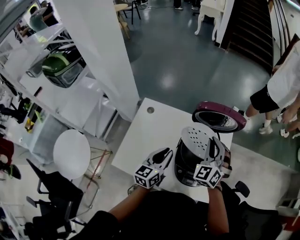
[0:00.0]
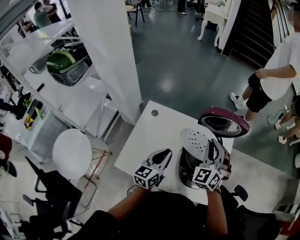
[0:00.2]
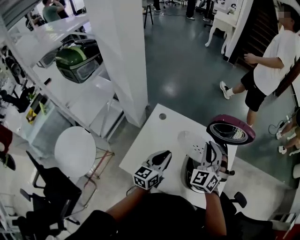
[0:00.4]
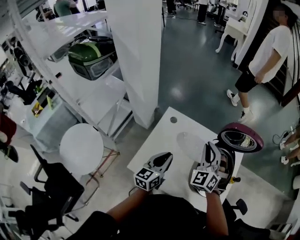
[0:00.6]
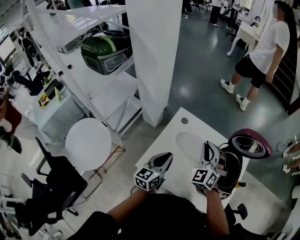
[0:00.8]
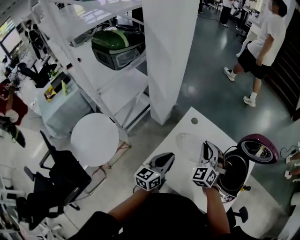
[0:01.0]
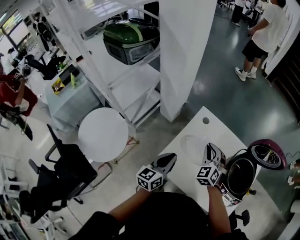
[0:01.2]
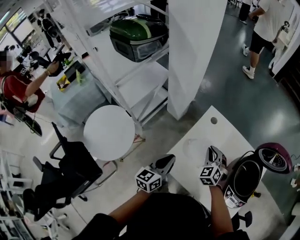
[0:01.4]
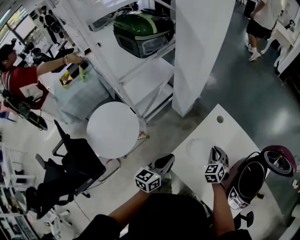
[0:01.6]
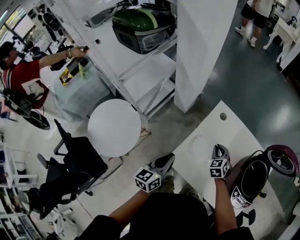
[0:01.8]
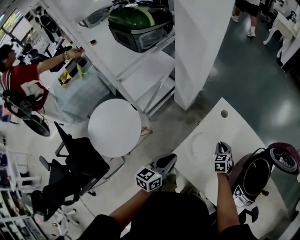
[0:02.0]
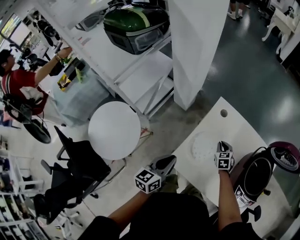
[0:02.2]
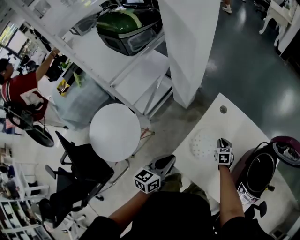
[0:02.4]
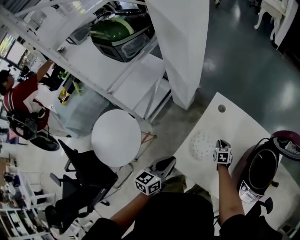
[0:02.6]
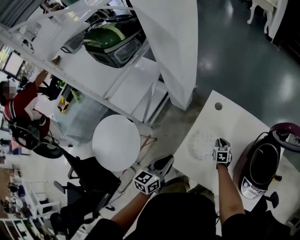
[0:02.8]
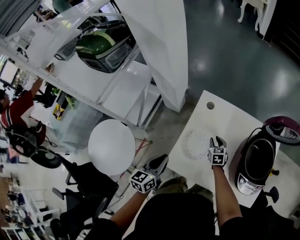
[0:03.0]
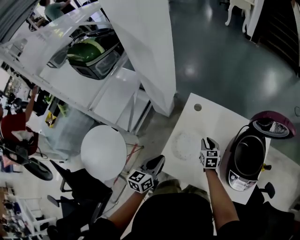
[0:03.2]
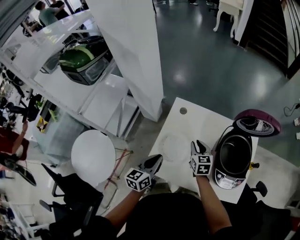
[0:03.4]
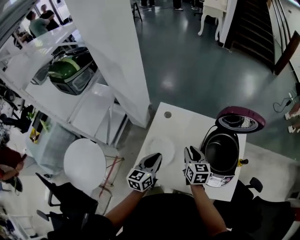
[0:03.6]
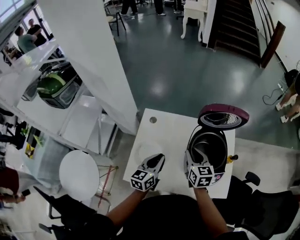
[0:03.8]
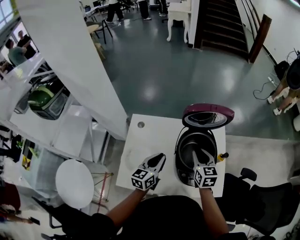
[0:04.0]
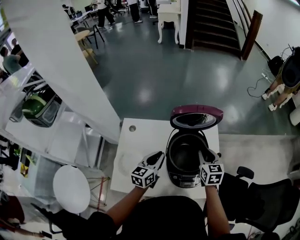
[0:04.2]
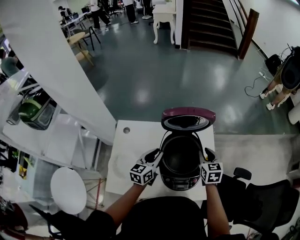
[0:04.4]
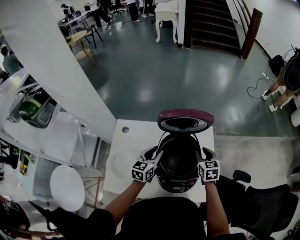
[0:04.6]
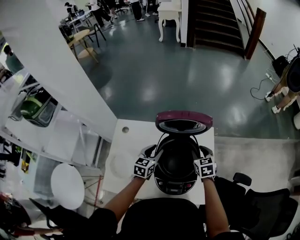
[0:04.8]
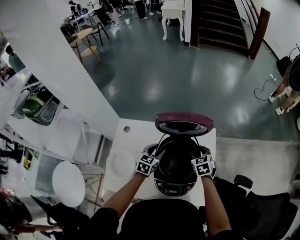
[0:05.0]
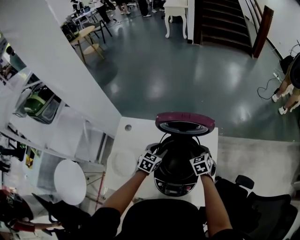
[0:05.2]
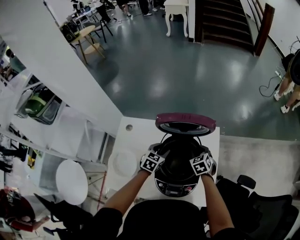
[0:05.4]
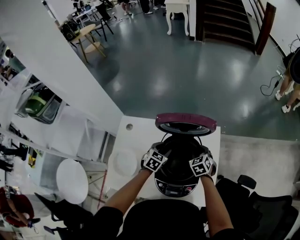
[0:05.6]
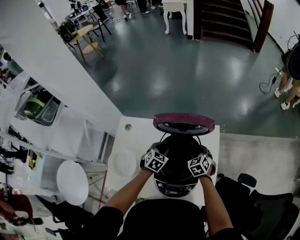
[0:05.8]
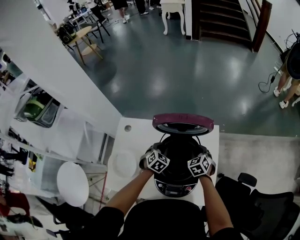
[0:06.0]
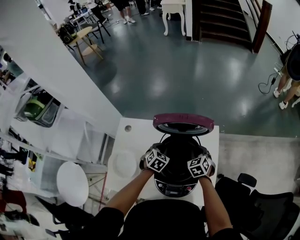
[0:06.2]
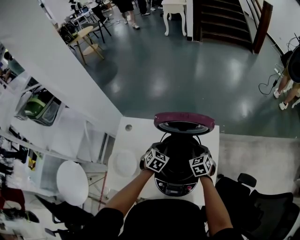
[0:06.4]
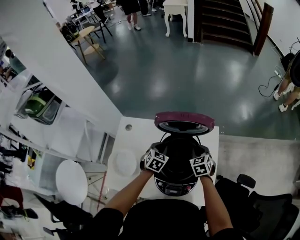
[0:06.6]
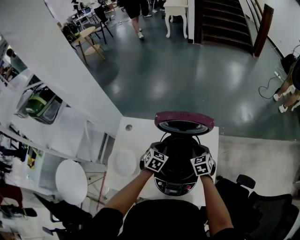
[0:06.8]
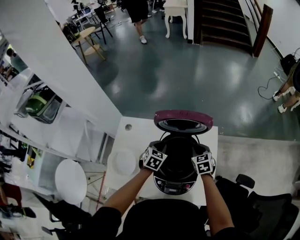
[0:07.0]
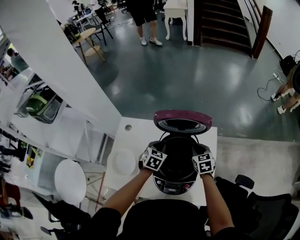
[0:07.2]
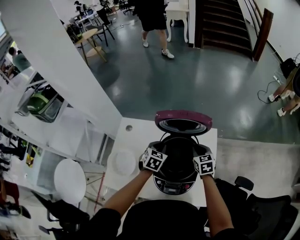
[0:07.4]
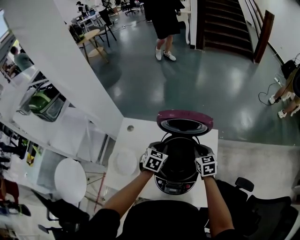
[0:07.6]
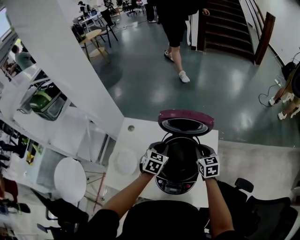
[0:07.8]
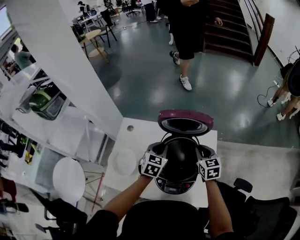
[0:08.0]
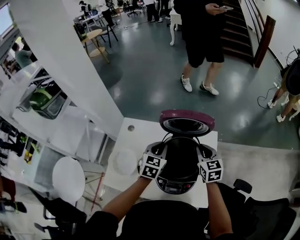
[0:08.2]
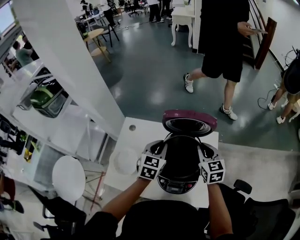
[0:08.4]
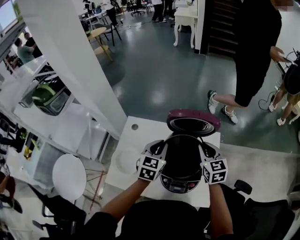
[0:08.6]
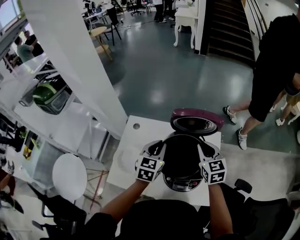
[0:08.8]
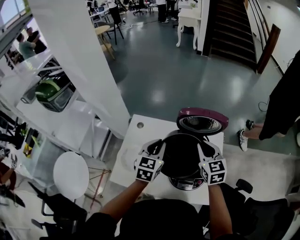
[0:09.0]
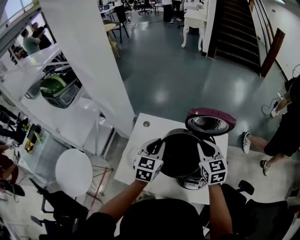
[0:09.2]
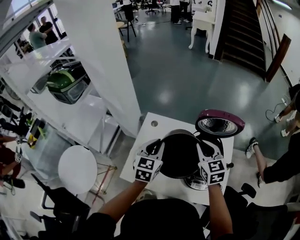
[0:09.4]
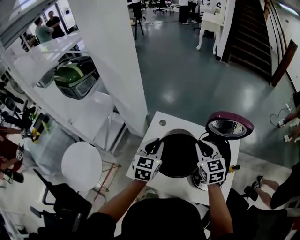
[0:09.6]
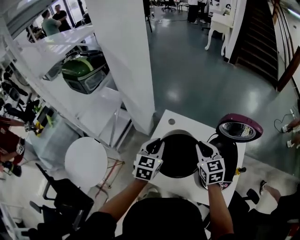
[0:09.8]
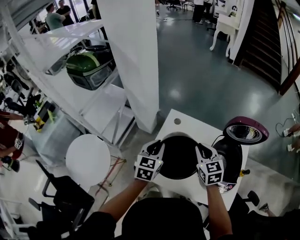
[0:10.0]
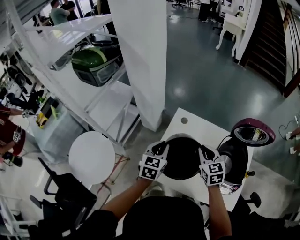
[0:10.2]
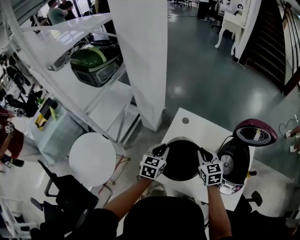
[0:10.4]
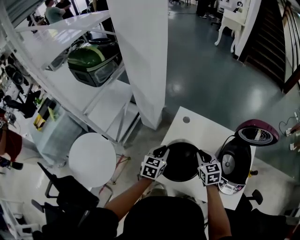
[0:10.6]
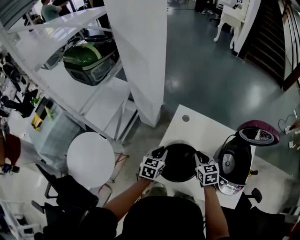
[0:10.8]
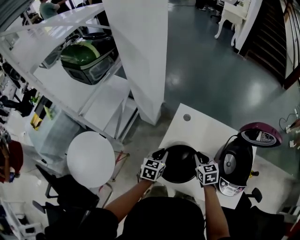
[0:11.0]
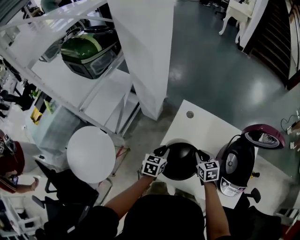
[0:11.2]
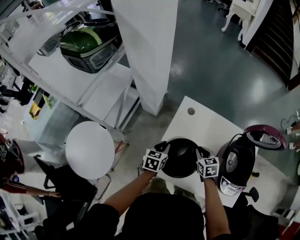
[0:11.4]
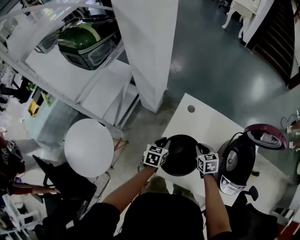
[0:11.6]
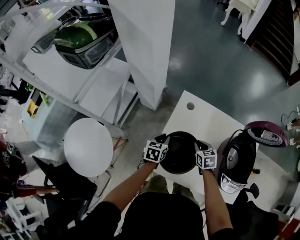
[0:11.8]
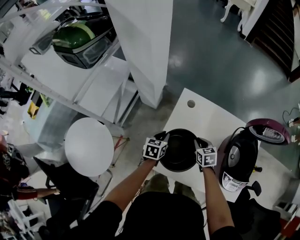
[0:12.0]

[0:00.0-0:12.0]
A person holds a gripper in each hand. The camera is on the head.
0:00.0 to 0:01.6: The left gripper travels to the left by some 35 cm, and turns by roughly 20 degrees; the right gripper moves to the left and downward, some 40 cm, and turns by approximately 30 degrees.
0:01.6 to 0:03.0: The right gripper shifts approximately 15 cm downward and to the right, and rotates around the line of its fingers by approximately 40 degrees, clockwise from behind.
0:03.0 to 0:04.4: Both grippers are carried to the right, approximately 40 cm. The left gripper swivels about 30 degrees. Meanwhile the right gripper is displaced upward by approximately 20 cm, and swivels approximately 30 degrees.
0:04.4 to 0:06.0: The two grippers go approximately 15 cm downward and forward. The left gripper tips its fingers downward by some 30 degrees, and opens and closes again. The right gripper changes its angle by approximately 30 degrees.
0:06.0 to 0:07.6: Both grippers move upward, roughly 10 cm. The right gripper changes its angle by roughly 20 degrees.
0:07.6 to 0:09.0: The left gripper is displaced upward, to the left and backward by roughly 20 cm, and turns by about 20 degrees, while the right gripper goes about 20 cm upward and to the left.
0:09.0 to 0:10.4: The grippers both shift to the left by approximately 30 cm.
0:10.4 to 0:12.0: Both grippers travel together downward, some 15 cm. The right gripper rotates some 20 degrees.

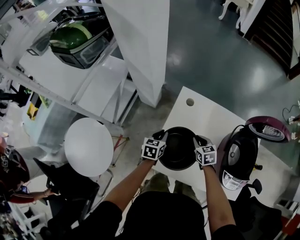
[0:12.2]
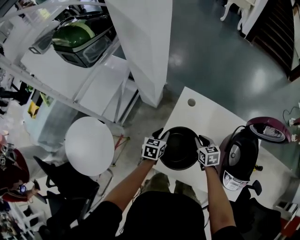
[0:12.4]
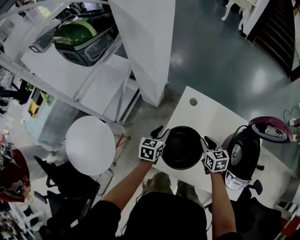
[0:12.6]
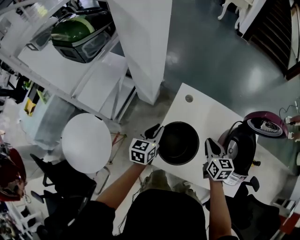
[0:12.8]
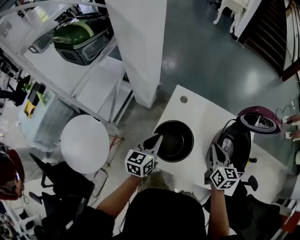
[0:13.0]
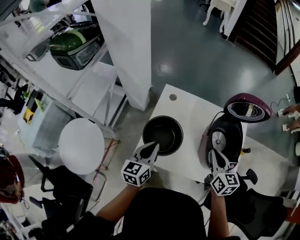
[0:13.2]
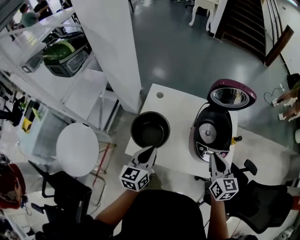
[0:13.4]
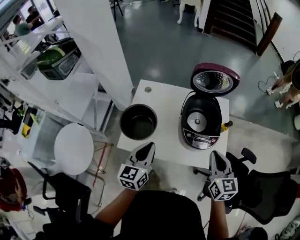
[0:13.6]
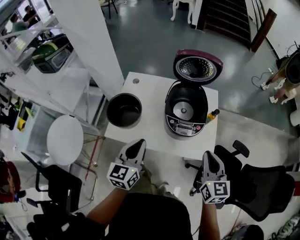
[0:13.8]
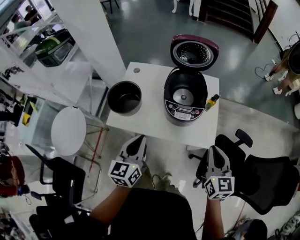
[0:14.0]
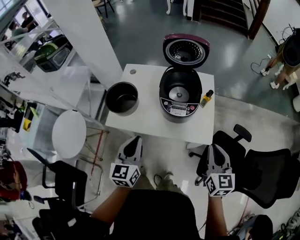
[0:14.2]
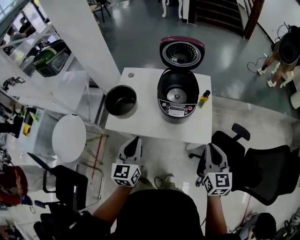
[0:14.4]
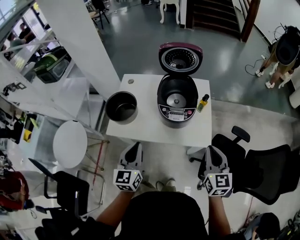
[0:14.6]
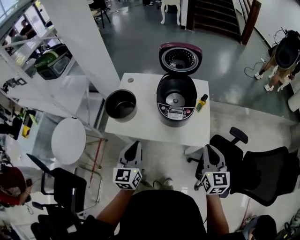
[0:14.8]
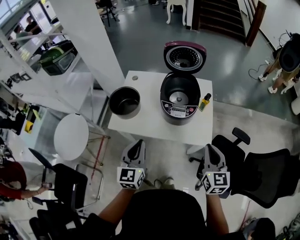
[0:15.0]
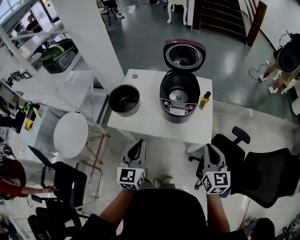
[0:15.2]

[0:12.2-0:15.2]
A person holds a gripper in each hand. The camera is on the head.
0:12.2 to 0:13.8: Both grippers travel together backward, to the right and upward, approximately 50 cm. The right gripper angles its fingers upward, by roughly 30 degrees, while the left gripper turns by roughly 30 degrees.
0:13.8 to 0:15.2: The left gripper goes roughly 10 cm backward. The right gripper is displaced backward and to the right by about 10 cm.

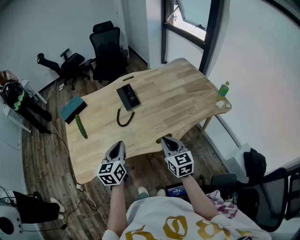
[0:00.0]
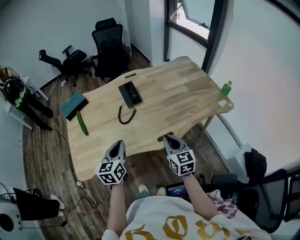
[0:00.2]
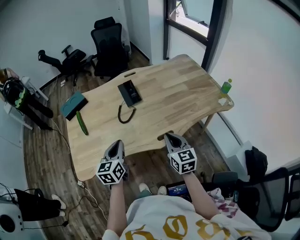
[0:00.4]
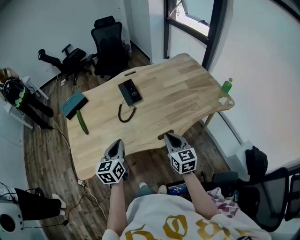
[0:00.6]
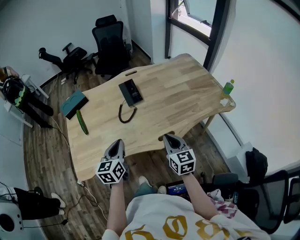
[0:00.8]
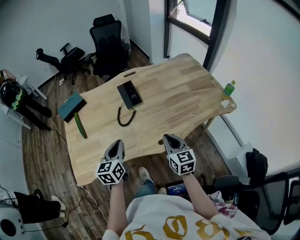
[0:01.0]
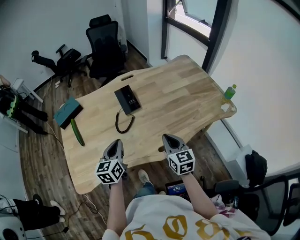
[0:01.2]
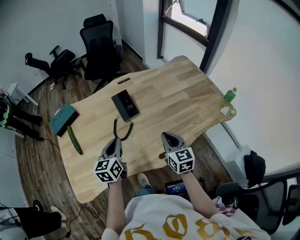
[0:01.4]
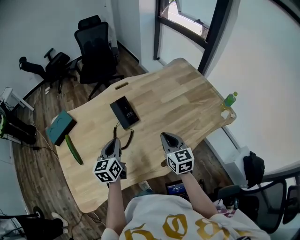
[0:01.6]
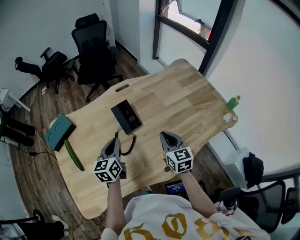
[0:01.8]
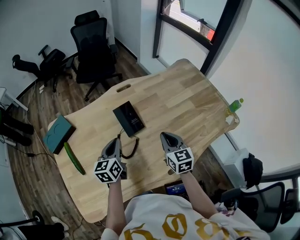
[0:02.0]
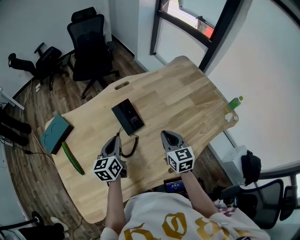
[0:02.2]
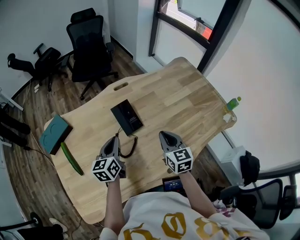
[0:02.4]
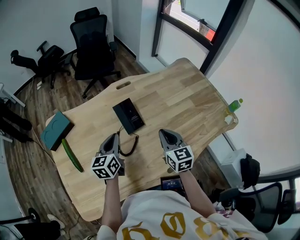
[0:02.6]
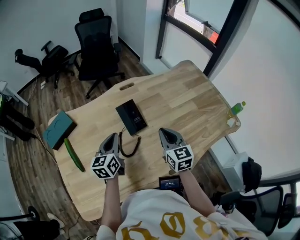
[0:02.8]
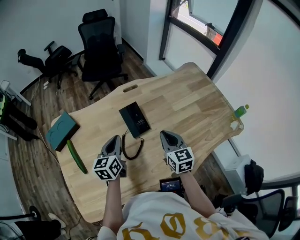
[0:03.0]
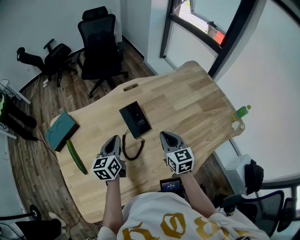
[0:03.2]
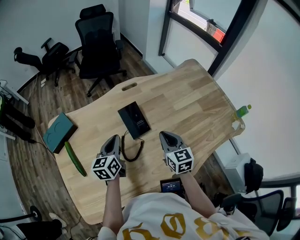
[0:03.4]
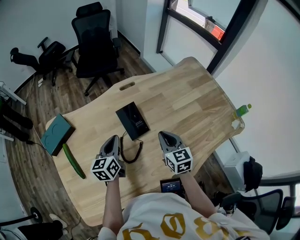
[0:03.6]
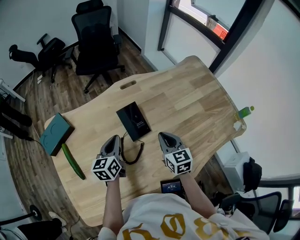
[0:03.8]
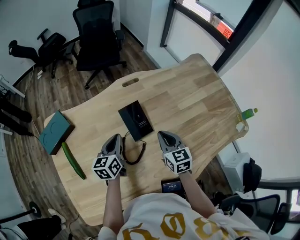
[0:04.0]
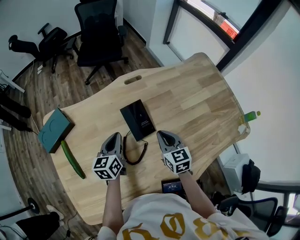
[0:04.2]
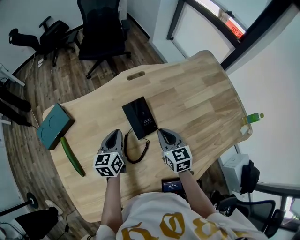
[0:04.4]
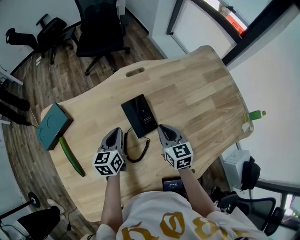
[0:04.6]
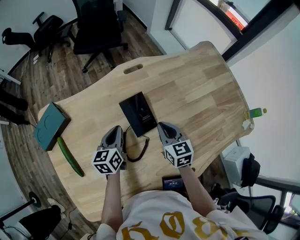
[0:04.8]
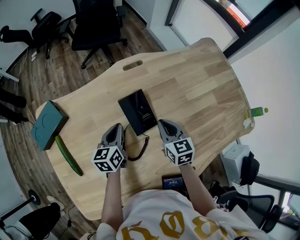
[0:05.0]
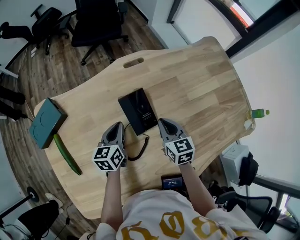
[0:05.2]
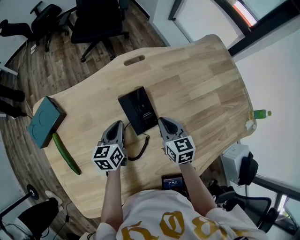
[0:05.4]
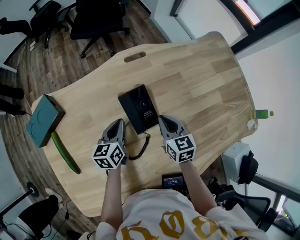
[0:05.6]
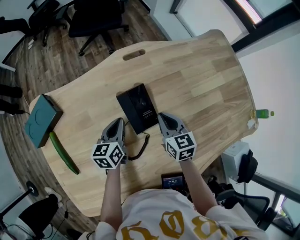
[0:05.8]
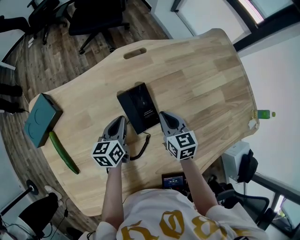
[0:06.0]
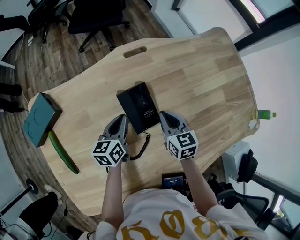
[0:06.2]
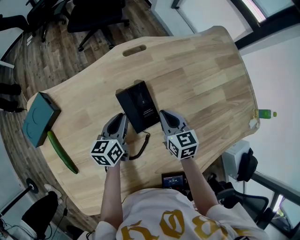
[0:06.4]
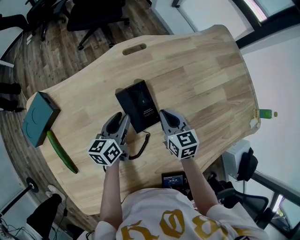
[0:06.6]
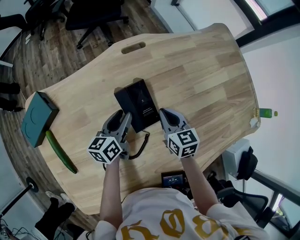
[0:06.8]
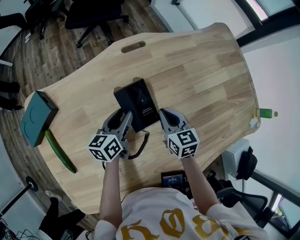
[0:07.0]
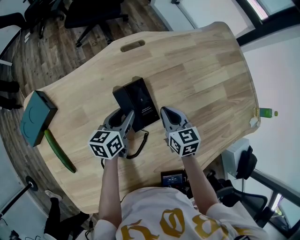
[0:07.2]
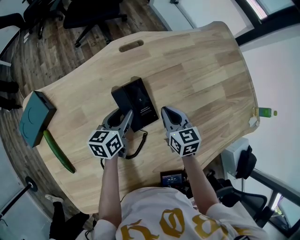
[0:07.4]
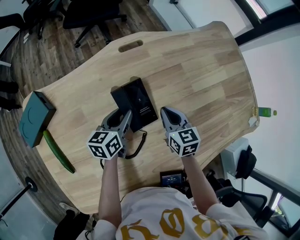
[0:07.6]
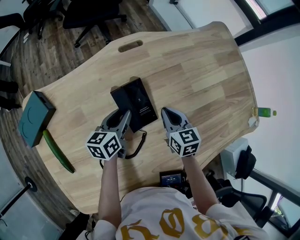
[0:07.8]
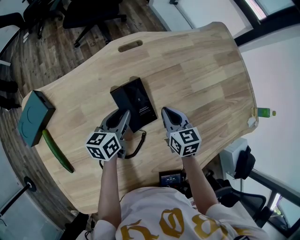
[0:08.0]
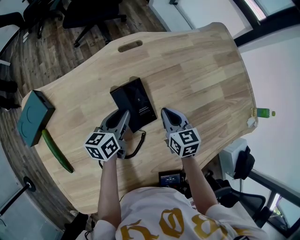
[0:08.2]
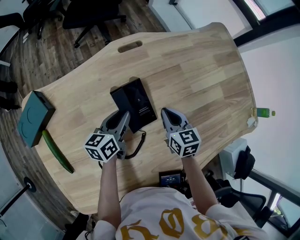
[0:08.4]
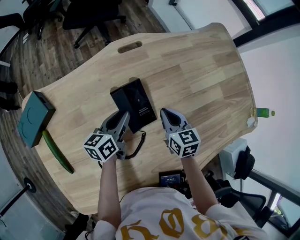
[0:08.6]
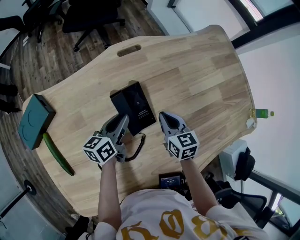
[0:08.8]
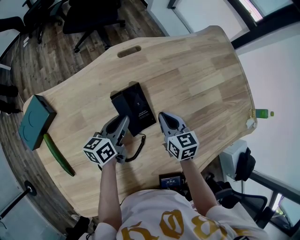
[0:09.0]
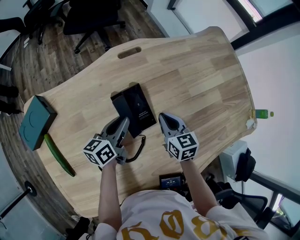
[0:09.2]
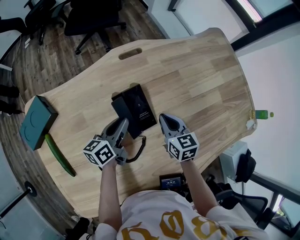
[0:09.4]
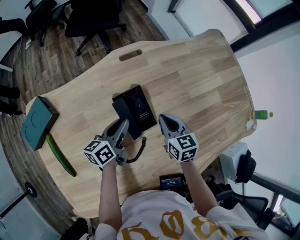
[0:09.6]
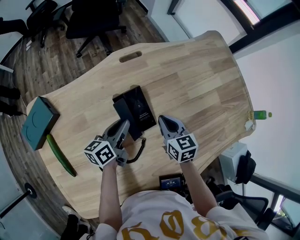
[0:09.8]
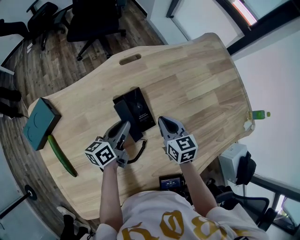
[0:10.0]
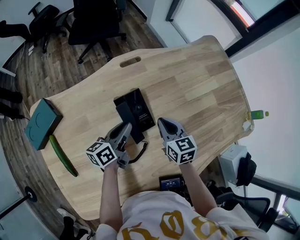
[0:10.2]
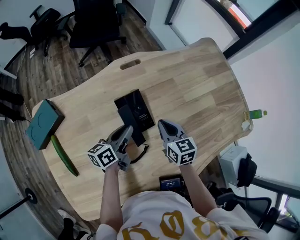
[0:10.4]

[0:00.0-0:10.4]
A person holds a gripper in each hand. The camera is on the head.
0:00.0 to 0:01.4: The two grippers go about 15 cm forward.
0:01.4 to 0:03.0: Both grippers move forward and to the left, roughly 15 cm.
0:03.0 to 0:04.4: The left gripper moves forward and downward, roughly 10 cm. Meanwhile the right gripper goes some 10 cm downward and forward.
0:04.4 to 0:06.0: The two grippers go roughly 5 cm downward.
0:06.0 to 0:07.4: The left gripper opens its fingers.
0:07.4 to 0:09.0: There are only small adjustments of the grippers.
0:09.0 to 0:10.4: The grippers make only small movements.
